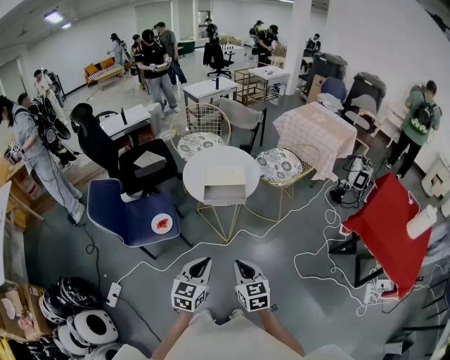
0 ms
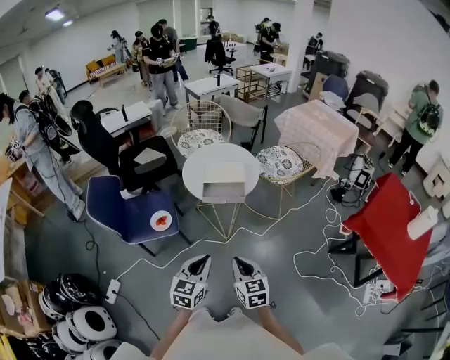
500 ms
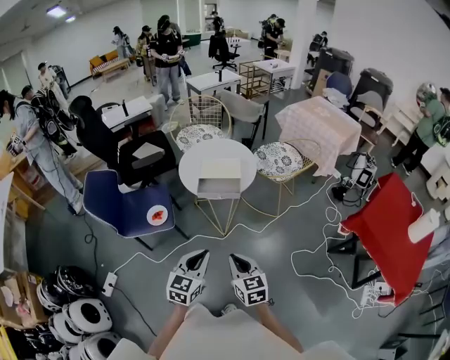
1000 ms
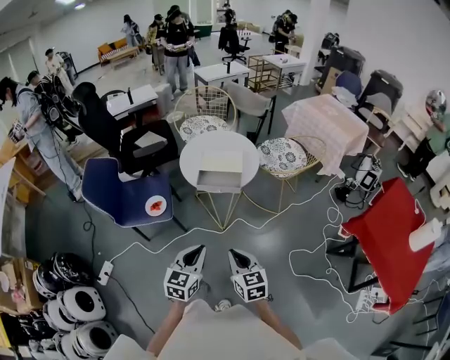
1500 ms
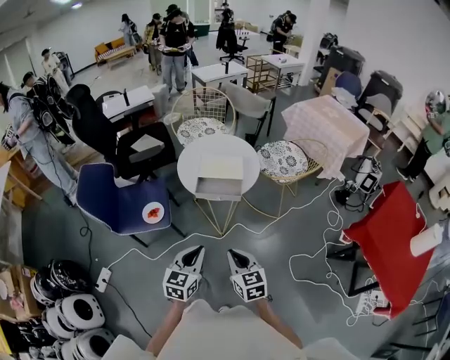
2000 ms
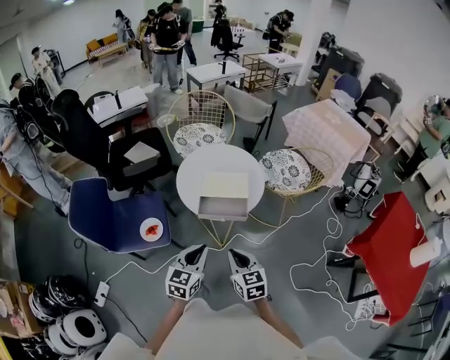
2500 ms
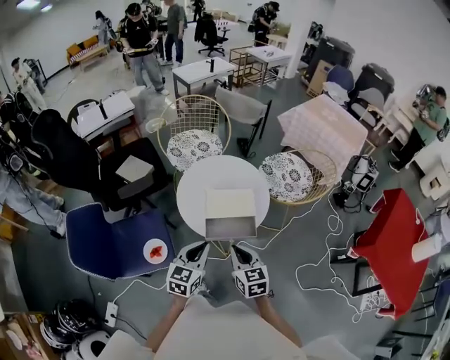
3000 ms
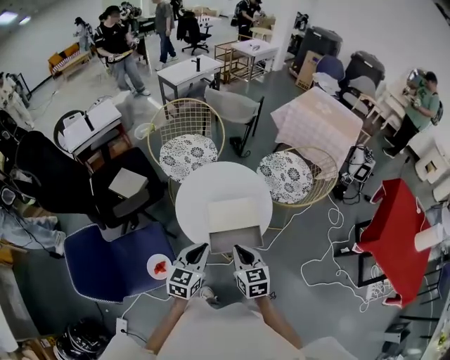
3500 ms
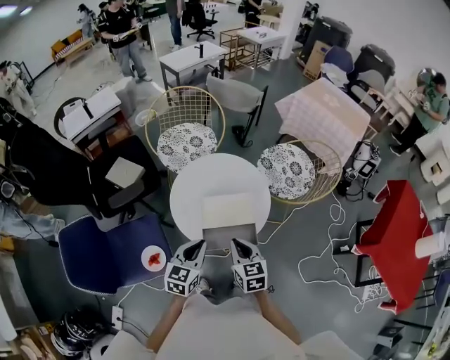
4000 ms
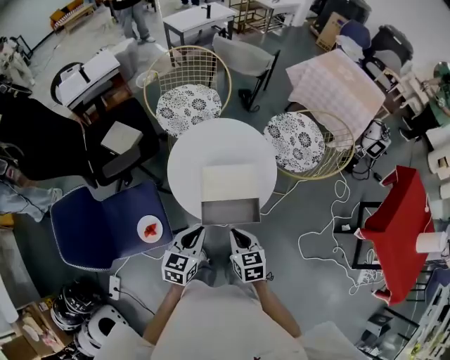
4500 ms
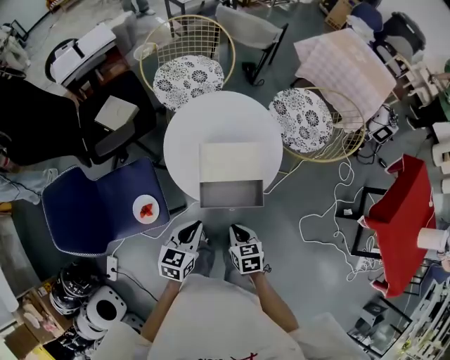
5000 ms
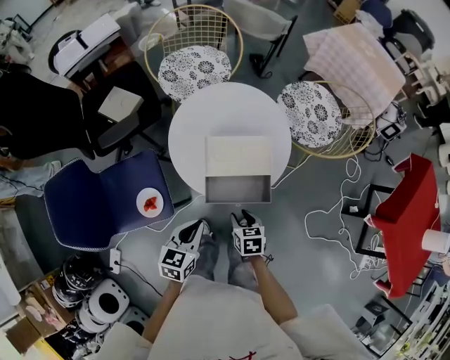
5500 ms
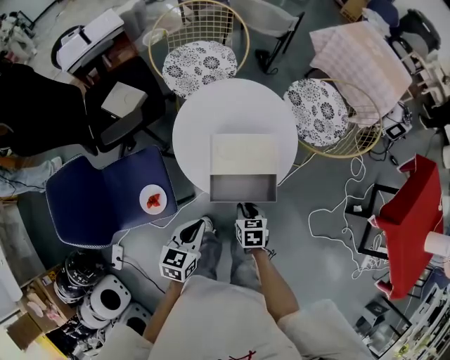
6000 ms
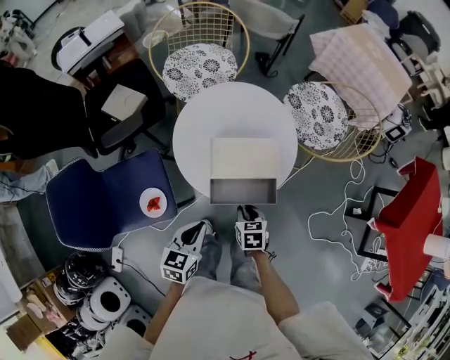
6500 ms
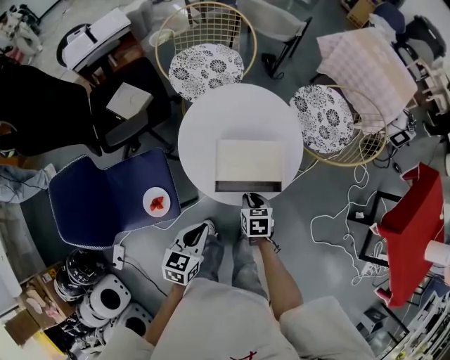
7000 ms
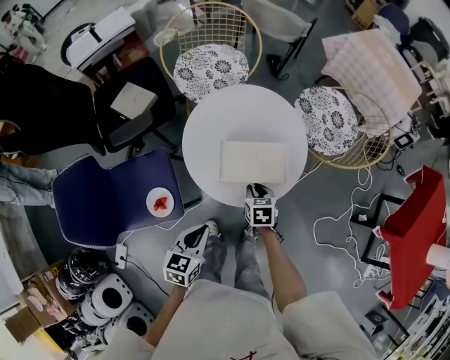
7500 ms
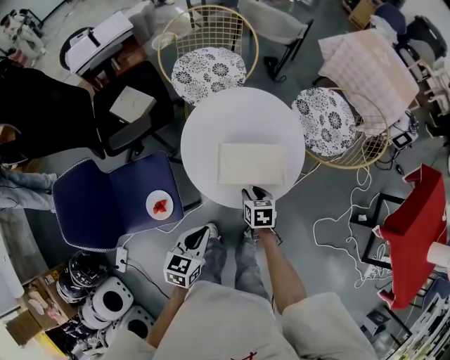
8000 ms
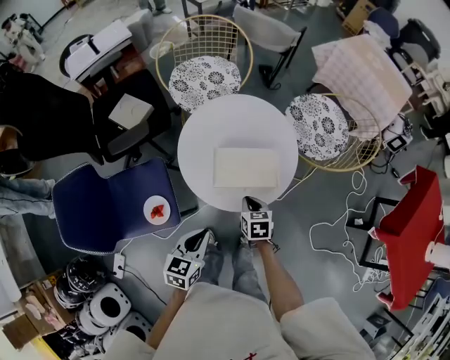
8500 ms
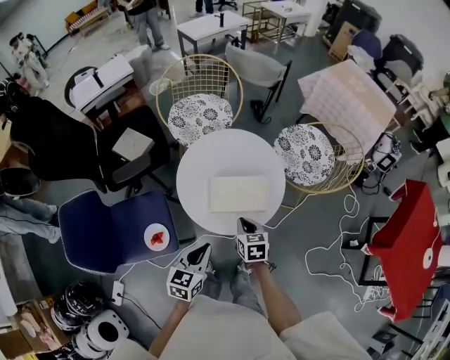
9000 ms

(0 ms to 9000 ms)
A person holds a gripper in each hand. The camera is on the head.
0 ms - 2000 ms: Both grippers travel together forward, approximately 5 cm.
2000 ms - 4500 ms: The two grippers go about 30 cm forward. The right gripper turns by some 20 degrees.
4500 ms - 7000 ms: The left gripper moves downward, roughly 5 cm; the right gripper shifts about 15 cm downward and forward, and opens, then closes again.
7000 ms - 9000 ms: The right gripper travels upward by roughly 10 cm. Meanwhile the left gripper ends up some 5 cm from where it was.

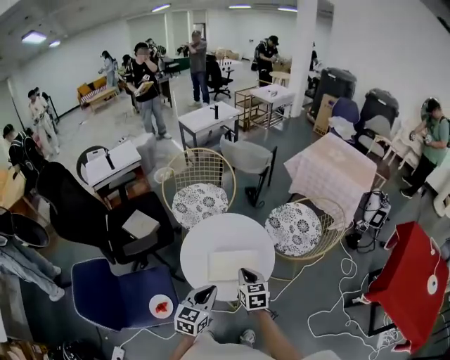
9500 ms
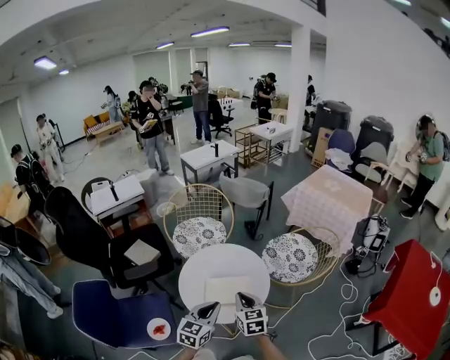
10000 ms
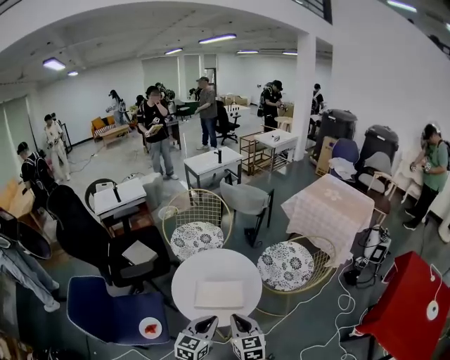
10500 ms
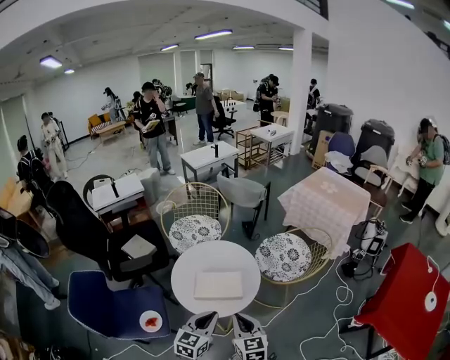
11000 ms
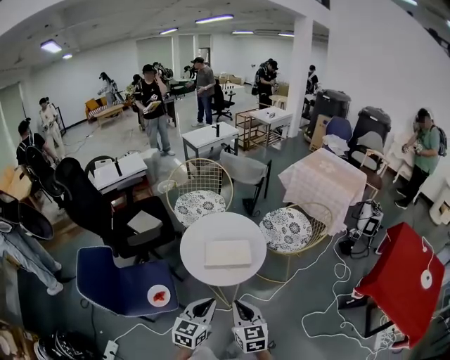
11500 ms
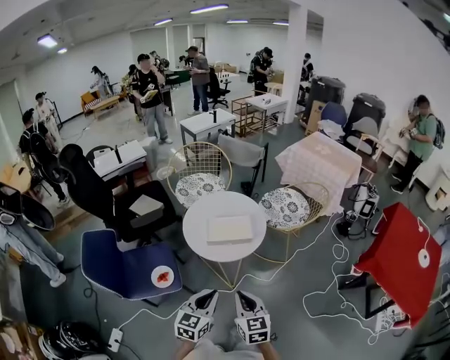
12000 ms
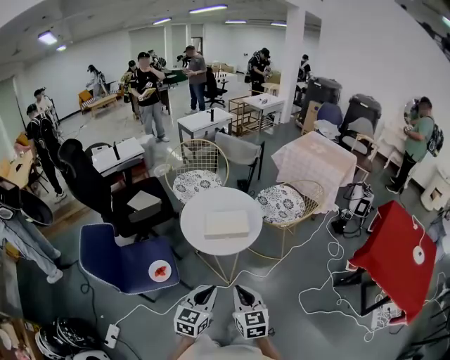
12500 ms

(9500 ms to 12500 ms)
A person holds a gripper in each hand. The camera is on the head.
9500 ms - 11000 ms: The right gripper is displaced backward, upward and to the right by about 15 cm, while the left gripper shifts some 10 cm to the right and backward.
11000 ms - 12500 ms: The two grippers go roughly 20 cm backward.

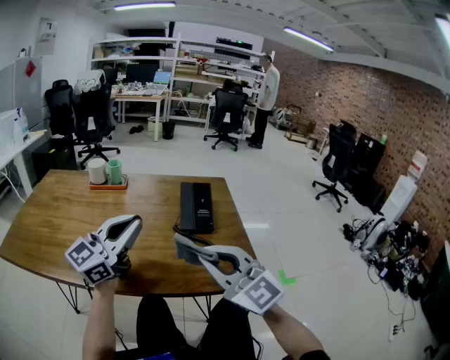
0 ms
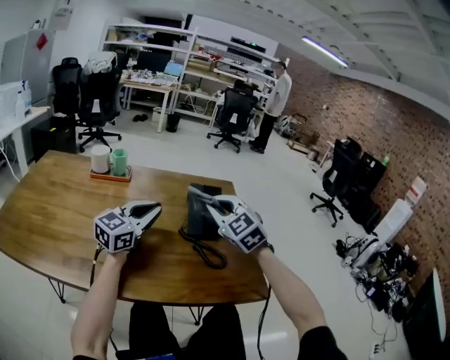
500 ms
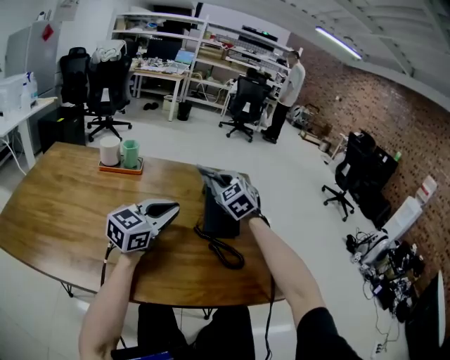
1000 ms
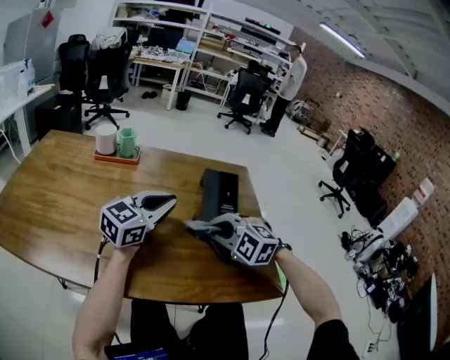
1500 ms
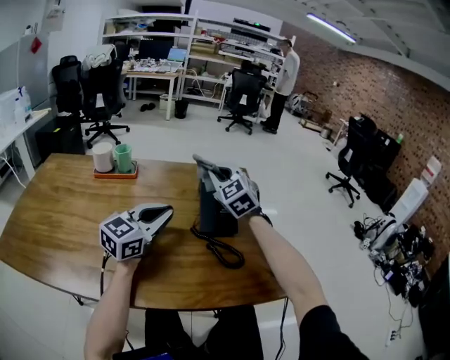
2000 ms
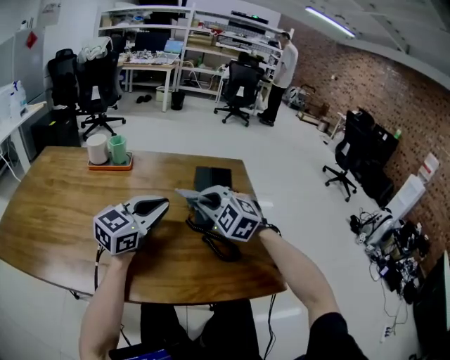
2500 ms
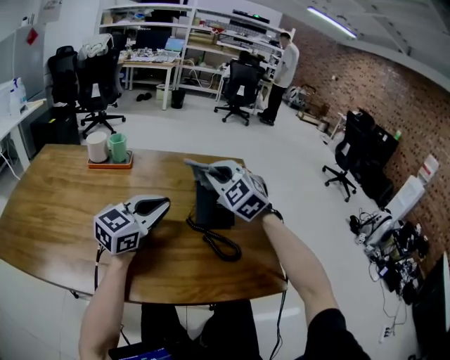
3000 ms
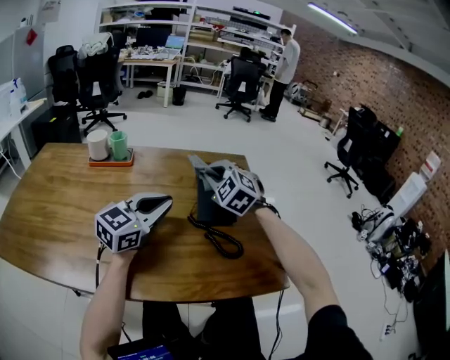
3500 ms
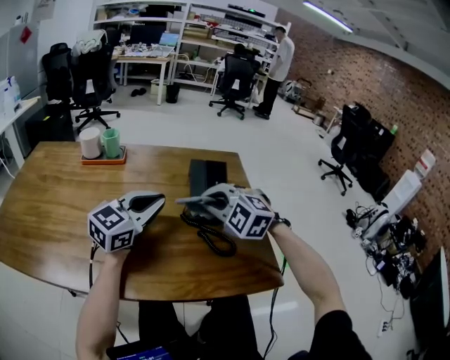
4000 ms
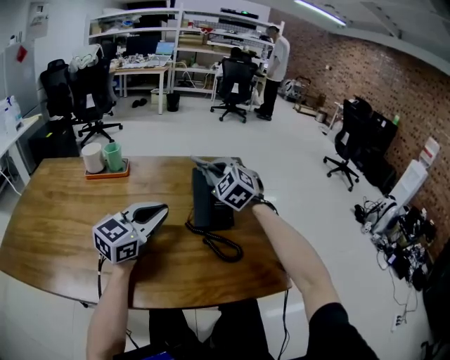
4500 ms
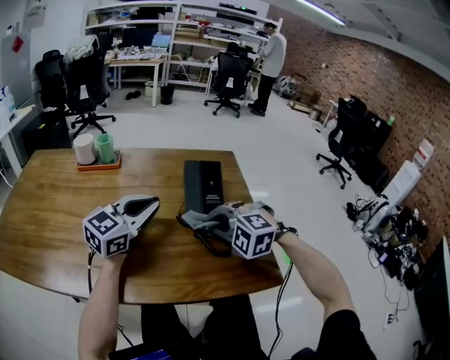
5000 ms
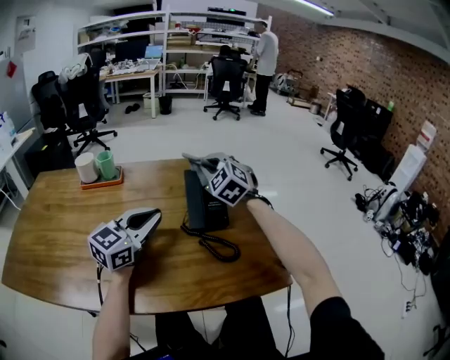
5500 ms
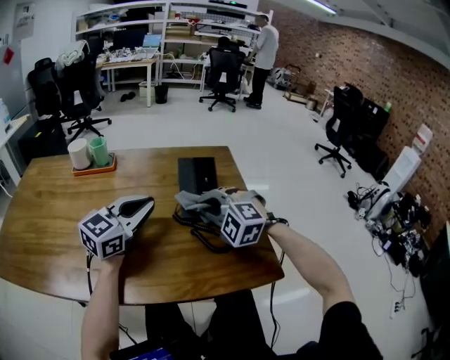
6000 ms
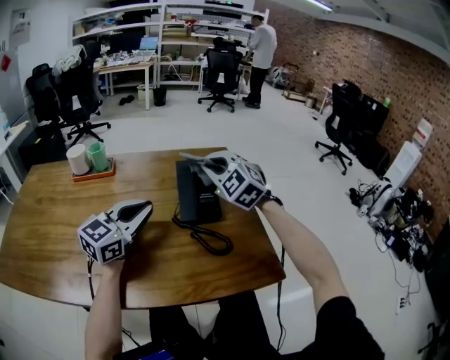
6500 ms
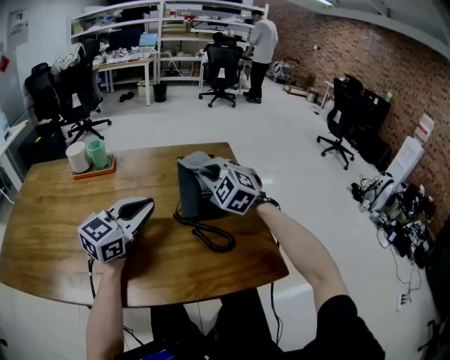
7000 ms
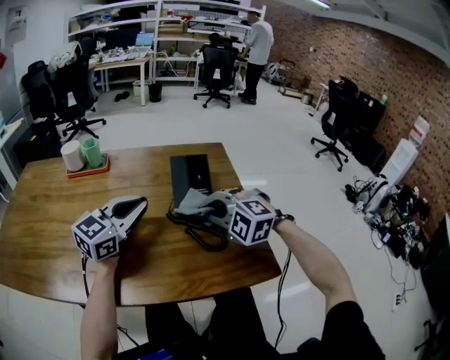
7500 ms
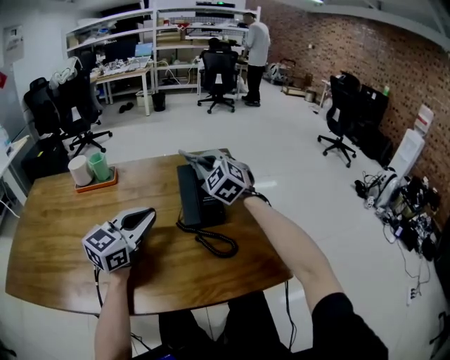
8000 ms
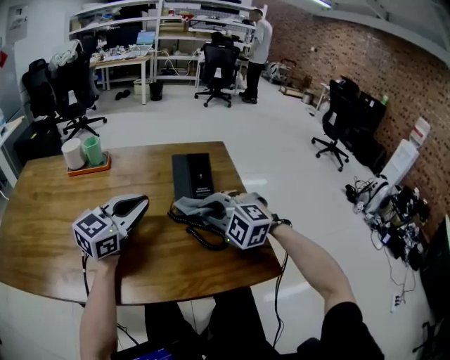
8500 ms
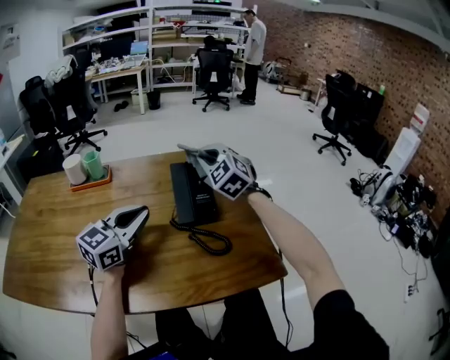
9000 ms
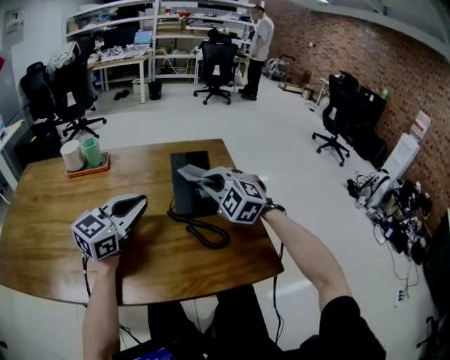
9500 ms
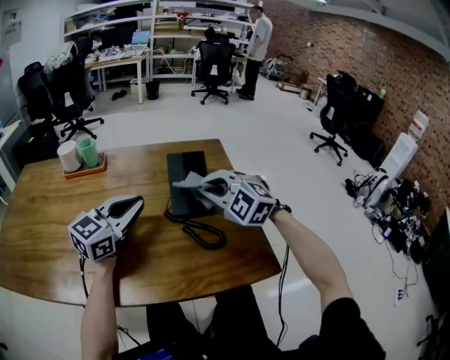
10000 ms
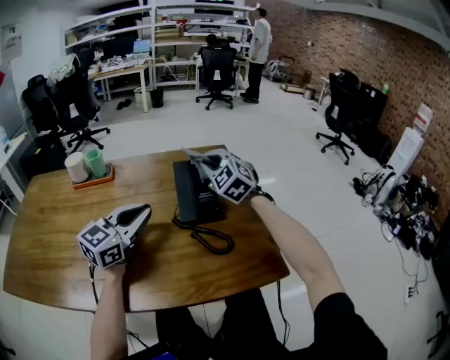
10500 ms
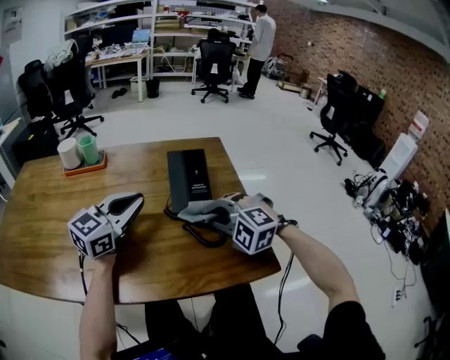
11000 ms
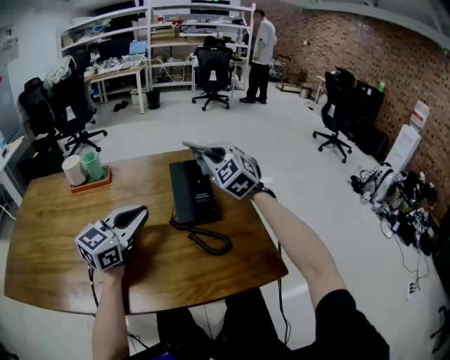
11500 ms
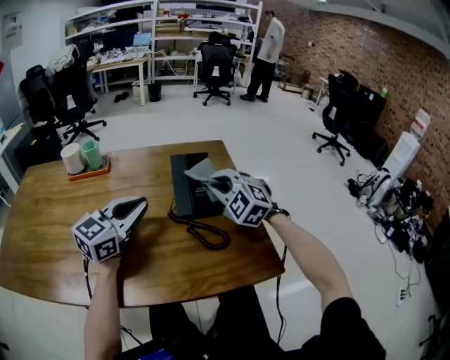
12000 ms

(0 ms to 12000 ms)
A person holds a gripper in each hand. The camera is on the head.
0 ms - 2000 ms: The right gripper goes forward and backward, roughly 35 cm each way, reversing 2 times, and rotates approximately 30 degrees; the left gripper heads forward and downward, covering roughly 15 cm, and turns by about 20 degrees.
2000 ms - 4000 ms: The right gripper goes forward and backward, roughly 15 cm each way, reversing 2 times, and rotates roughly 30 degrees.
4000 ms - 6000 ms: The right gripper moves forward and backward over about 20 cm, changing direction 3 times.
6000 ms - 8000 ms: The right gripper goes forward and backward, about 15 cm each way, reversing 2 times, and turns by about 30 degrees.
8000 ms - 10000 ms: The right gripper swings forward and backward, about 15 cm each way, with 2 reversals, and changes its angle by some 20 degrees.
10000 ms - 12000 ms: The right gripper swings forward and backward, about 20 cm each way, with 3 reversals.

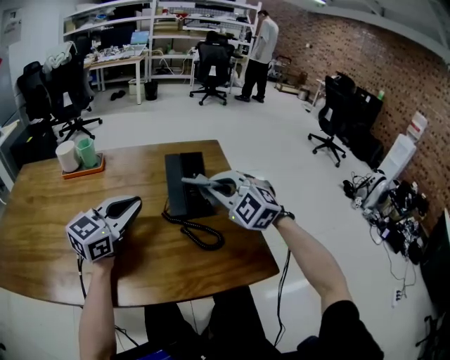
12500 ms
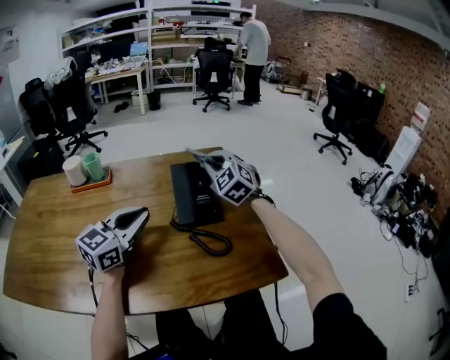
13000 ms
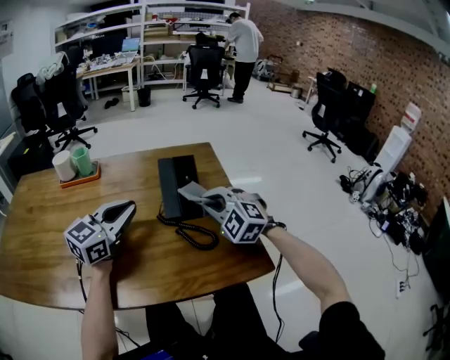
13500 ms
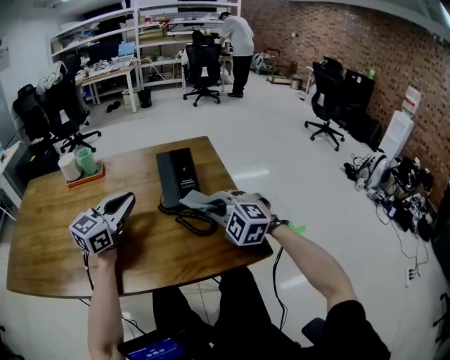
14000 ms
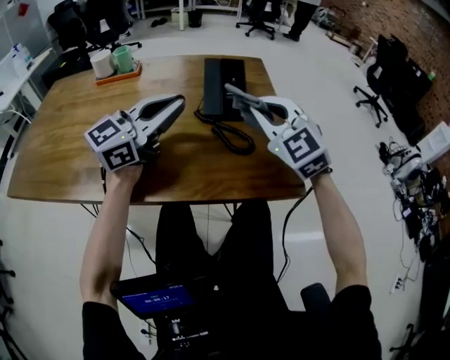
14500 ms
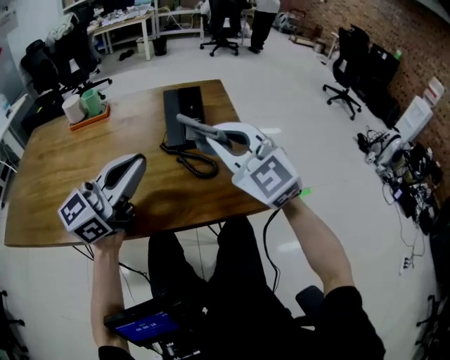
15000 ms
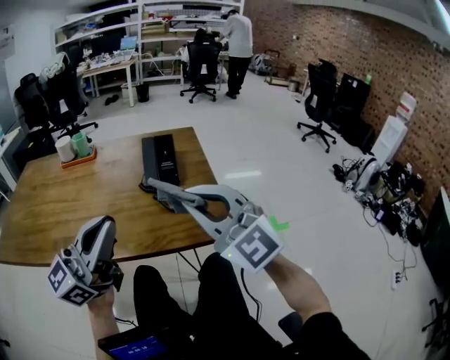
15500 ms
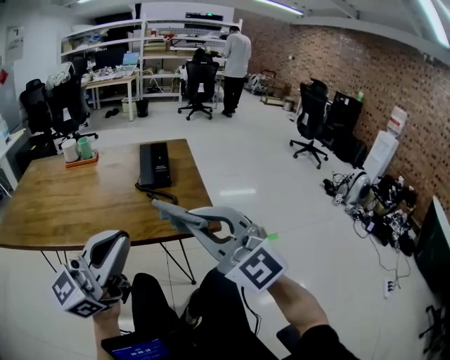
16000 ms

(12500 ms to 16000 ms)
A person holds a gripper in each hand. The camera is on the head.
12500 ms - 14500 ms: The left gripper goes about 10 cm upward and backward; the right gripper goes some 5 cm backward.
14500 ms - 16000 ms: Both grippers move backward, approximately 30 cm. The right gripper changes its angle by approximately 20 degrees.
